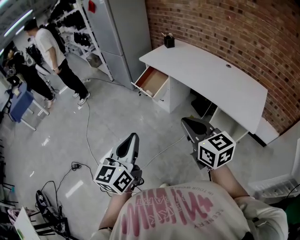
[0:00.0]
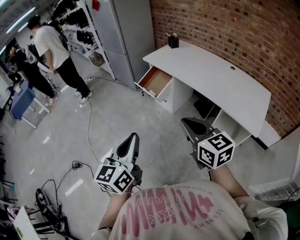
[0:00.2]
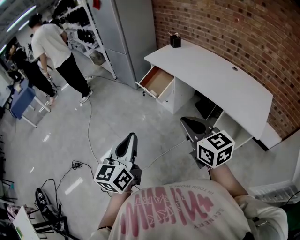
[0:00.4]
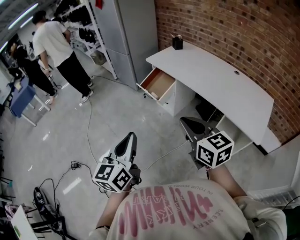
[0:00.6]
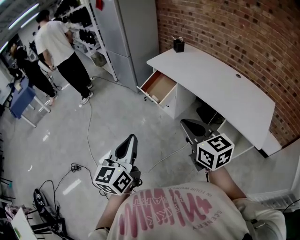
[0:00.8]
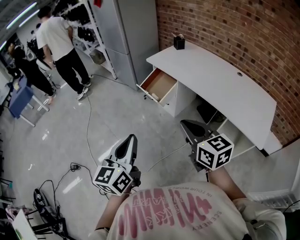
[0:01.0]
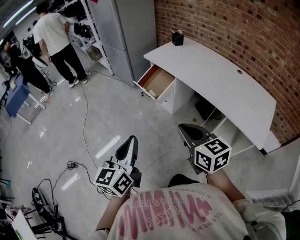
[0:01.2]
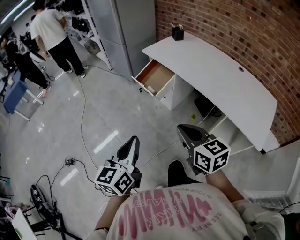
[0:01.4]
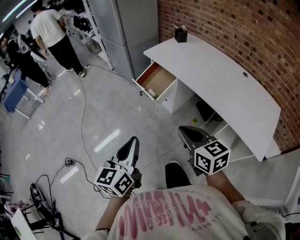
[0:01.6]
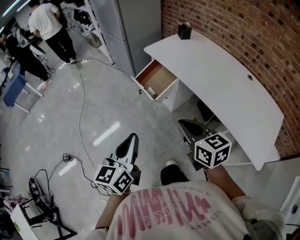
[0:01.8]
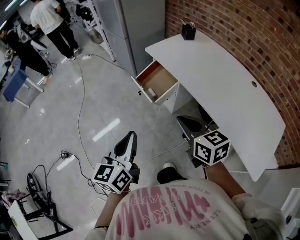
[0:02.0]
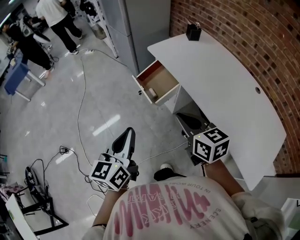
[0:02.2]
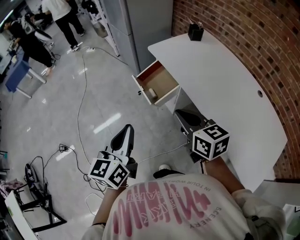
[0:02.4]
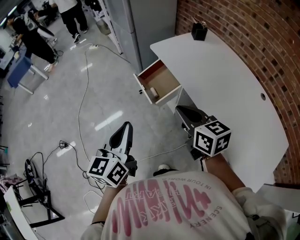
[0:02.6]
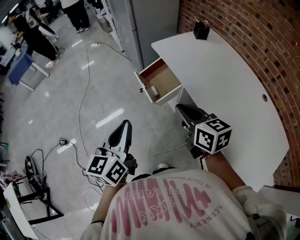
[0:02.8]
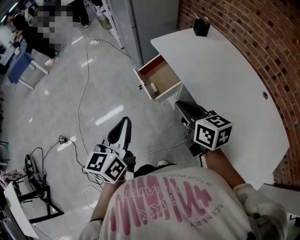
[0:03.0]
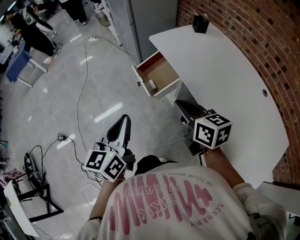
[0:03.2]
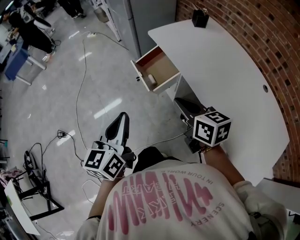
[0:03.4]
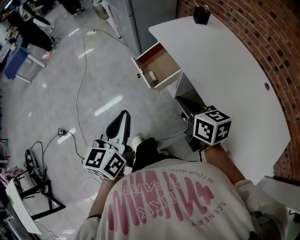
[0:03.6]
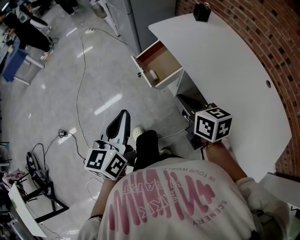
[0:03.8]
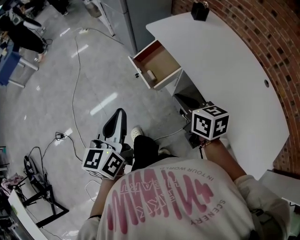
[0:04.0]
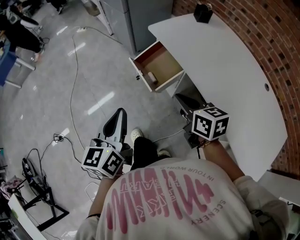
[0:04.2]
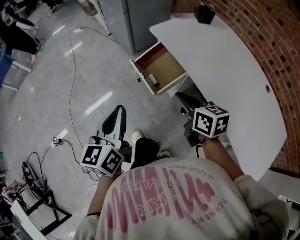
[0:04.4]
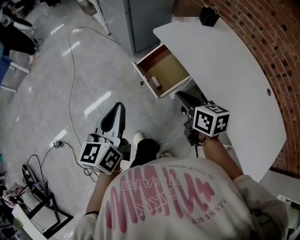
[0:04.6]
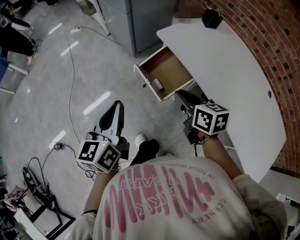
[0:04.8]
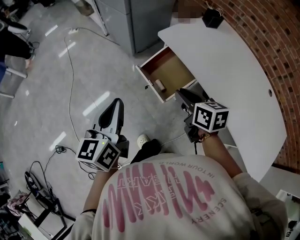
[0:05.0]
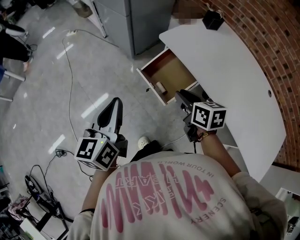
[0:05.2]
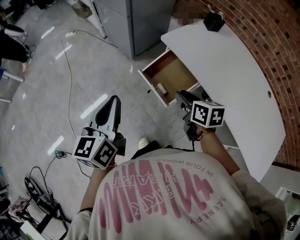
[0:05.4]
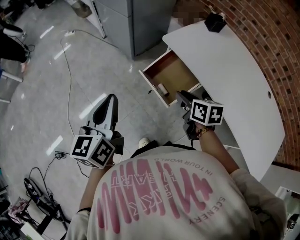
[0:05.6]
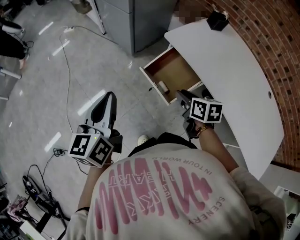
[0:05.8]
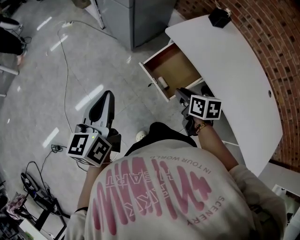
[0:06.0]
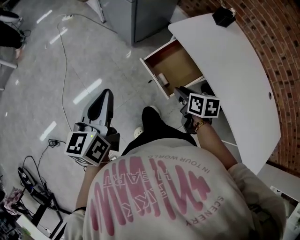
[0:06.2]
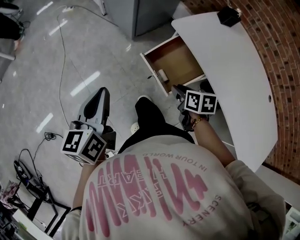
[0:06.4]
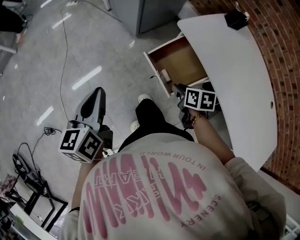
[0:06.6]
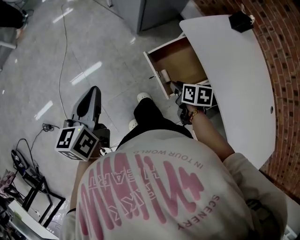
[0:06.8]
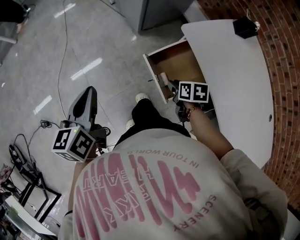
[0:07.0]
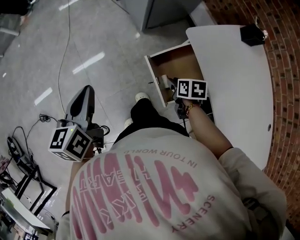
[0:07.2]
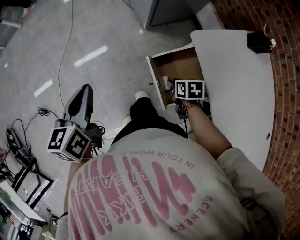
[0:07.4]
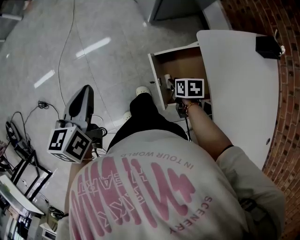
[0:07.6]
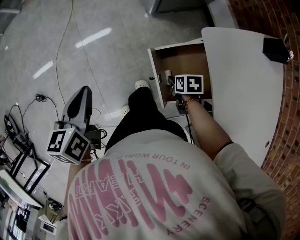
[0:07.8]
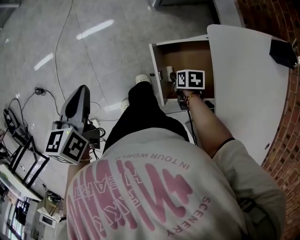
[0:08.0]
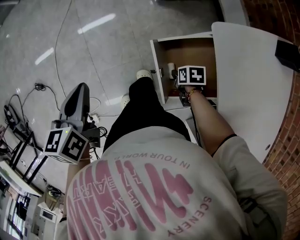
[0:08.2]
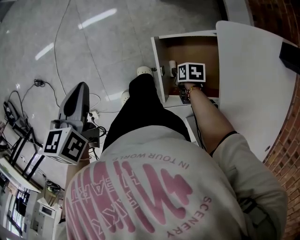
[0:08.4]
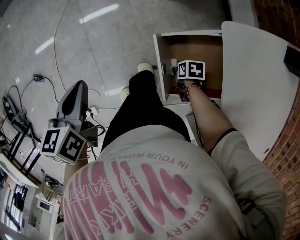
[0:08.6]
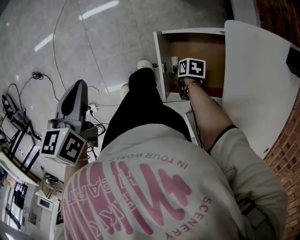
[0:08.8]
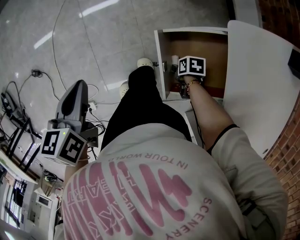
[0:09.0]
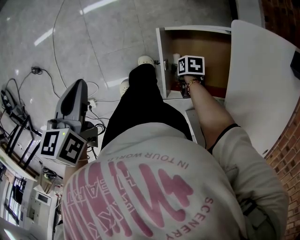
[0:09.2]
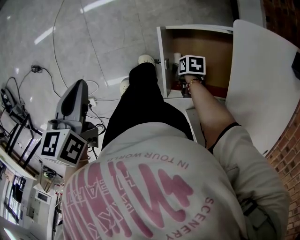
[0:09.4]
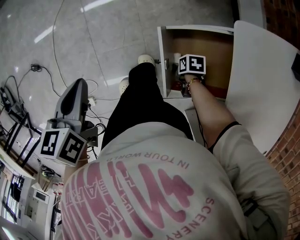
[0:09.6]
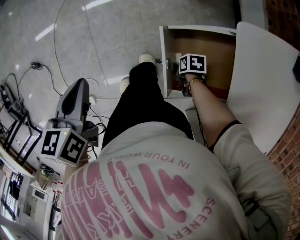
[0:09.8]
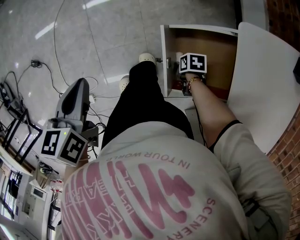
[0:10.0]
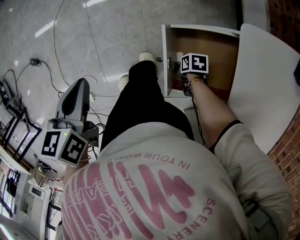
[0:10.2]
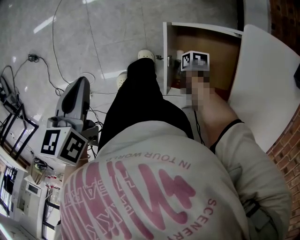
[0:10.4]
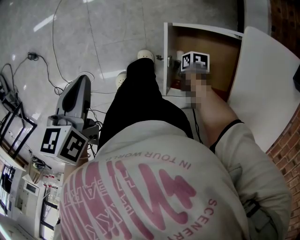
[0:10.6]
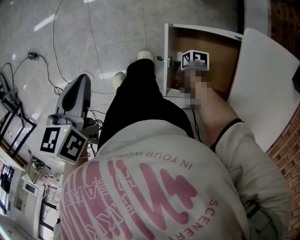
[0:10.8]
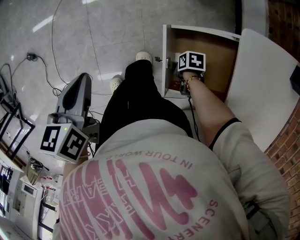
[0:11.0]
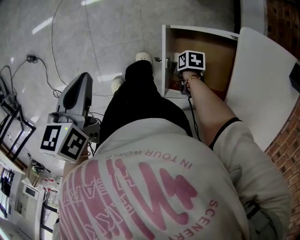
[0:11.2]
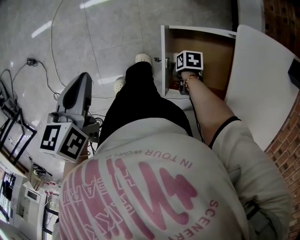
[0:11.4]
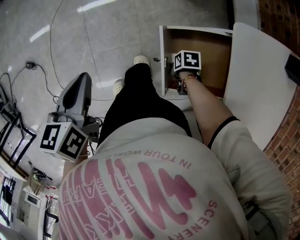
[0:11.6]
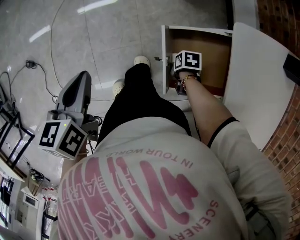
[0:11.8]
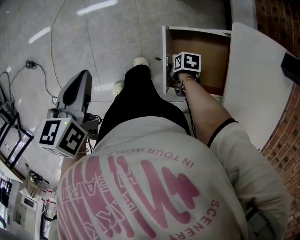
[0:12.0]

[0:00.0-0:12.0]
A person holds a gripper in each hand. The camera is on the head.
0:00.0 to 0:01.6: Both grippers move forward and downward, roughly 20 cm.
0:01.6 to 0:03.0: Both grippers move forward and to the right, approximately 20 cm.
0:03.0 to 0:04.4: The left gripper goes roughly 15 cm forward and to the left. The right gripper heads forward and downward, covering about 10 cm.
0:04.4 to 0:06.0: The right gripper moves forward, downward and to the left, about 20 cm, while the left gripper shifts about 20 cm forward and to the left.
0:06.0 to 0:07.6: The left gripper changes place by about 15 cm, and turns by approximately 30 degrees. Meanwhile the right gripper heads downward, covering some 20 cm, and rotates roughly 30 degrees.
0:07.6 to 0:09.0: The left gripper shifts about 10 cm downward, while the right gripper travels downward by approximately 15 cm, and rotates approximately 20 degrees.
0:09.0 to 0:12.0: The grippers make only small movements.

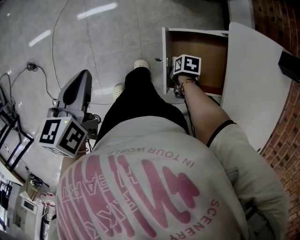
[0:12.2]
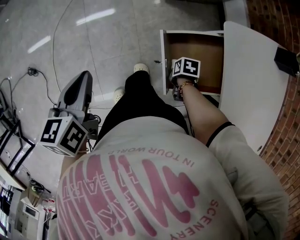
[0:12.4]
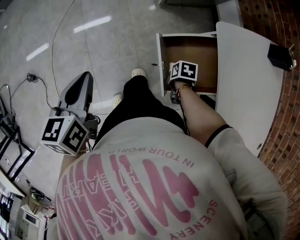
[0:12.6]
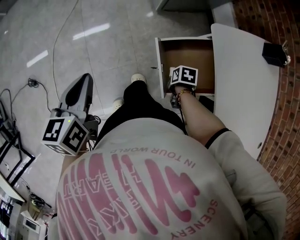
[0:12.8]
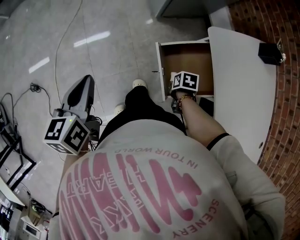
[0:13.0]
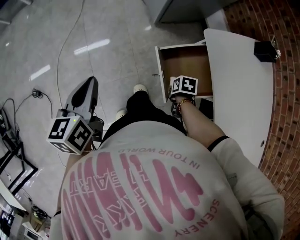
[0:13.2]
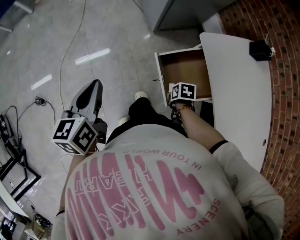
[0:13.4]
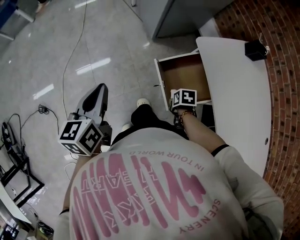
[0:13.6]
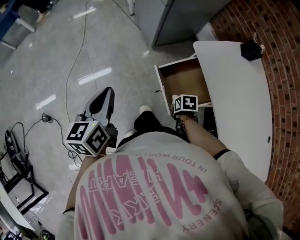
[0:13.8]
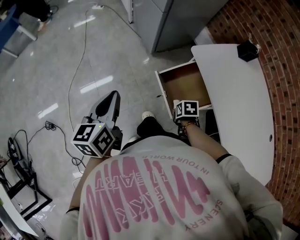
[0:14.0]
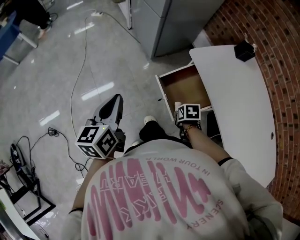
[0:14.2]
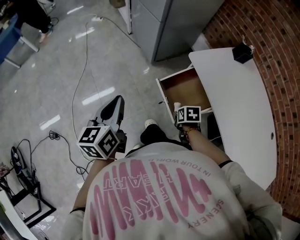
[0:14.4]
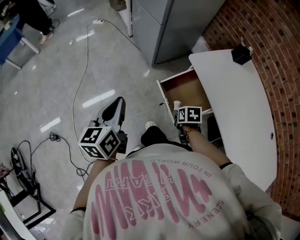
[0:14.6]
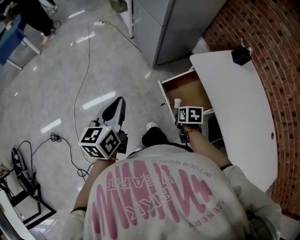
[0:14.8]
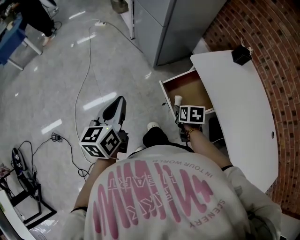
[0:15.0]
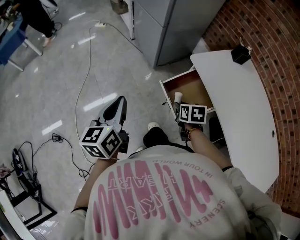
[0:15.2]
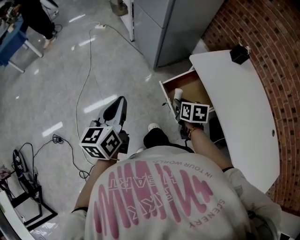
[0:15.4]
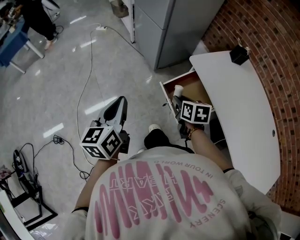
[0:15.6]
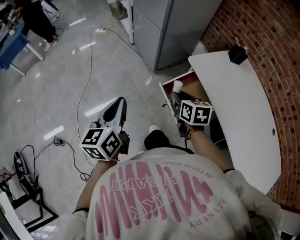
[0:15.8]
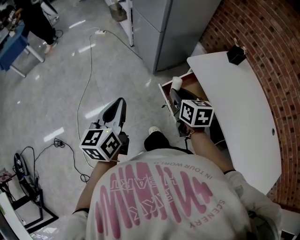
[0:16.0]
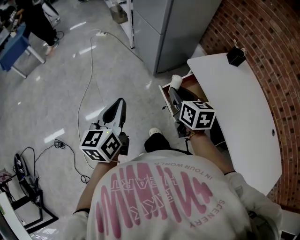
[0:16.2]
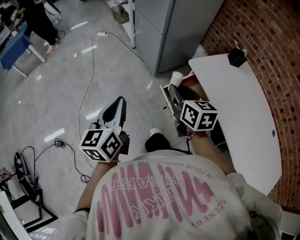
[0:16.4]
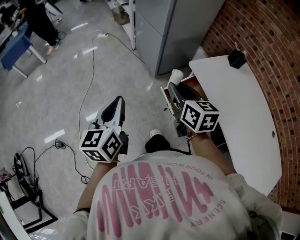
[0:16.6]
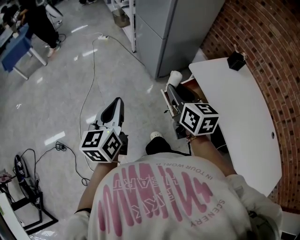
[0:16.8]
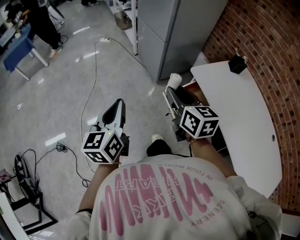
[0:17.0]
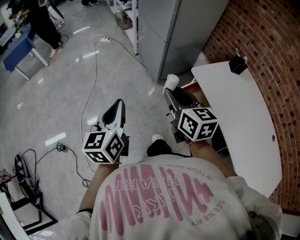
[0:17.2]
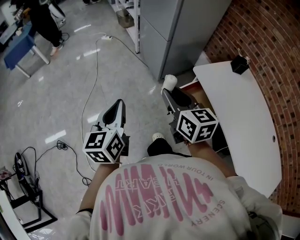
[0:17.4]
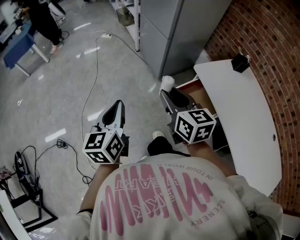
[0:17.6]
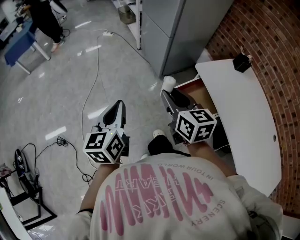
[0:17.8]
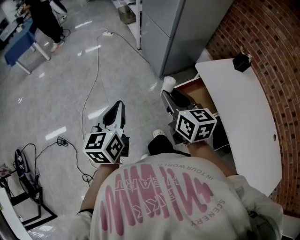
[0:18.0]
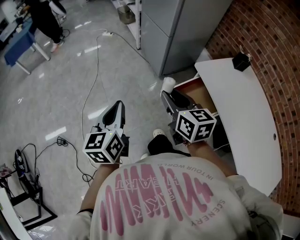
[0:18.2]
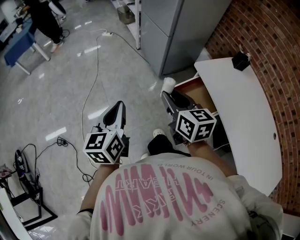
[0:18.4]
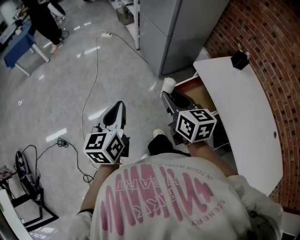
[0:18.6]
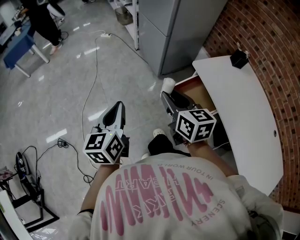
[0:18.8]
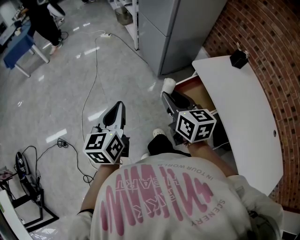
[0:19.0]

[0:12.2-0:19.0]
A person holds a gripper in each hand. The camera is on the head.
0:12.2 to 0:13.6: Both grippers move upward, approximately 10 cm.
0:13.6 to 0:15.0: The right gripper goes approximately 15 cm upward, and swivels about 20 degrees; the left gripper travels upward by roughly 5 cm.
0:15.0 to 0:16.2: The right gripper heads upward, covering approximately 20 cm, and tilts its fingers roughly 30 degrees upward.
0:16.2 to 0:17.6: The right gripper shifts roughly 10 cm to the left and upward.
0:17.6 to 0:19.0: The grippers make only small movements.

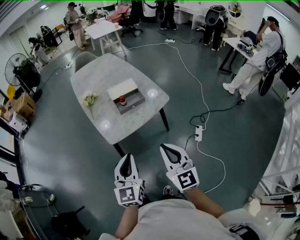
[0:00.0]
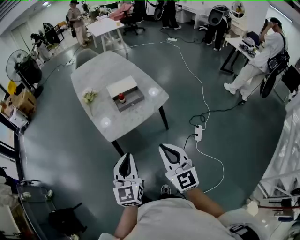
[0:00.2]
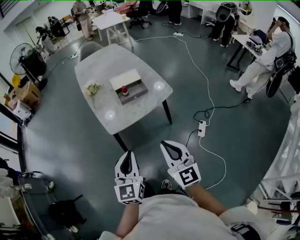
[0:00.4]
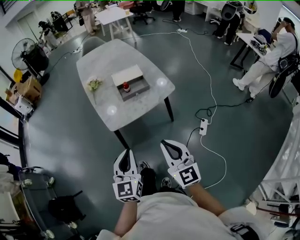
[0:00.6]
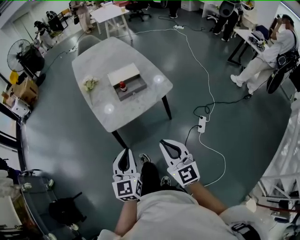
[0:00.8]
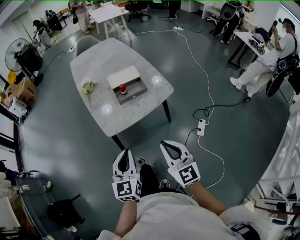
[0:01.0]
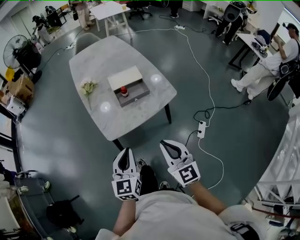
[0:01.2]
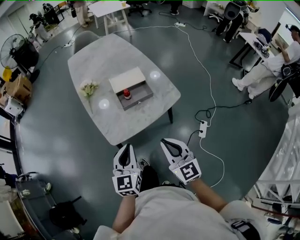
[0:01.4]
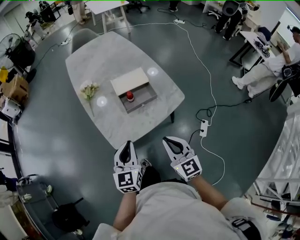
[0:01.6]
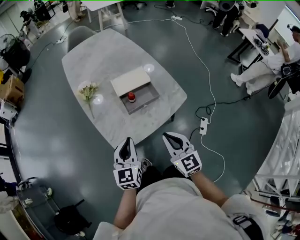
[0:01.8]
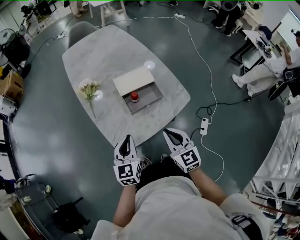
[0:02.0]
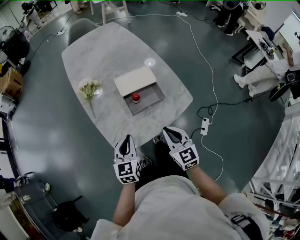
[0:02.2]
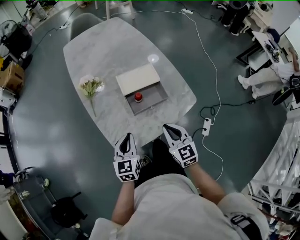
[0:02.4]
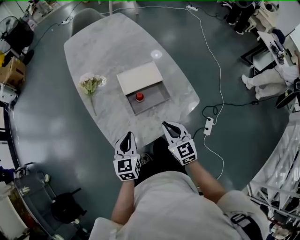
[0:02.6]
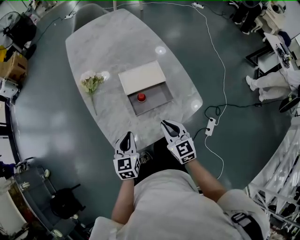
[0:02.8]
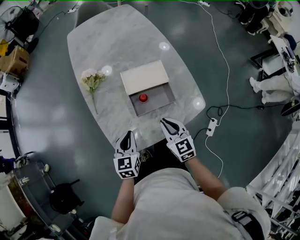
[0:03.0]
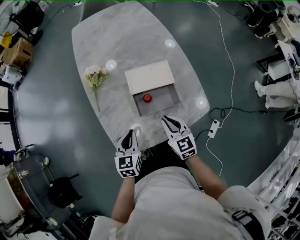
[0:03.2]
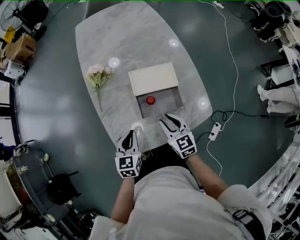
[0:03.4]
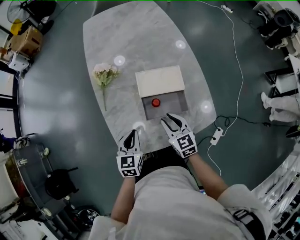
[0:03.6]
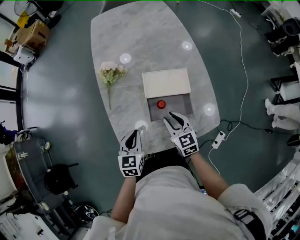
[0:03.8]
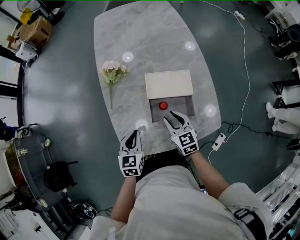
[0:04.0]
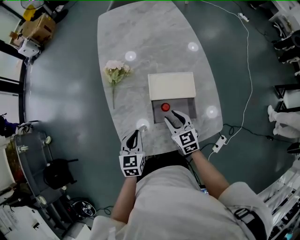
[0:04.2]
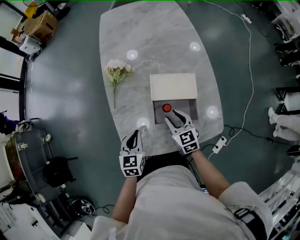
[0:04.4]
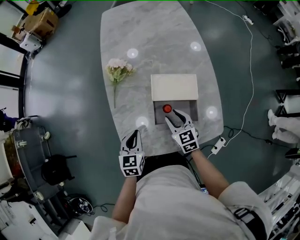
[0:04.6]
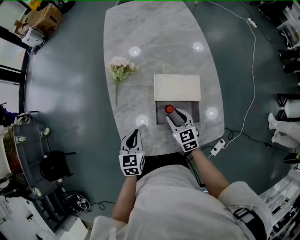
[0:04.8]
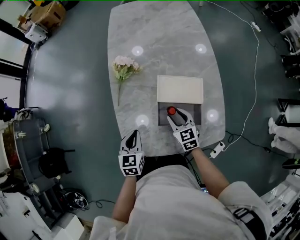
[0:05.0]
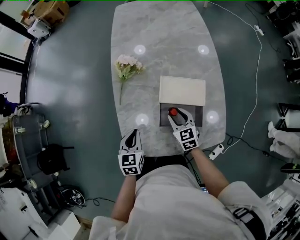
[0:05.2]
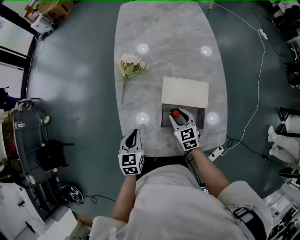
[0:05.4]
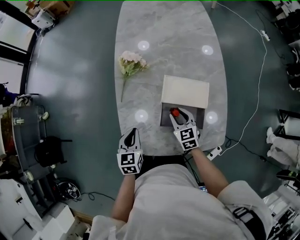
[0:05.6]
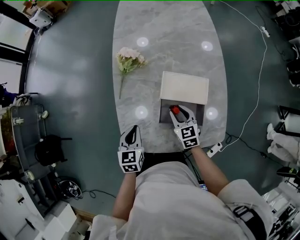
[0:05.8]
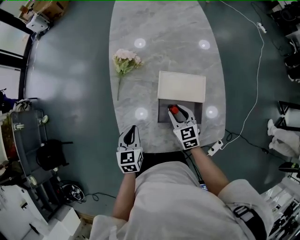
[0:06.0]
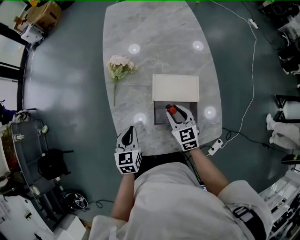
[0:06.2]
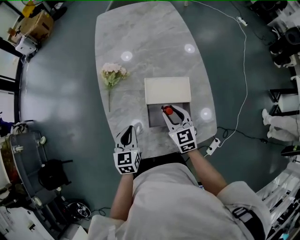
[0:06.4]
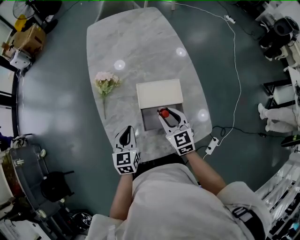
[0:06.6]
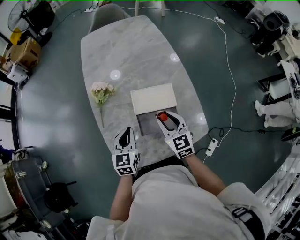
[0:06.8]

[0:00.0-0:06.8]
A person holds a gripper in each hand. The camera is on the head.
0:00.0 to 0:01.4: Both grippers travel together forward and downward, approximately 15 cm.
0:01.4 to 0:02.8: The two grippers go approximately 25 cm forward and downward.
0:02.8 to 0:04.0: The right gripper shifts some 15 cm forward, and opens; the left gripper goes approximately 5 cm forward.
0:04.0 to 0:05.4: The right gripper heads forward, covering roughly 5 cm.
0:05.4 to 0:06.8: The right gripper goes roughly 15 cm upward; the left gripper moves to the right and upward, some 10 cm.
